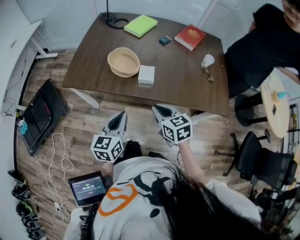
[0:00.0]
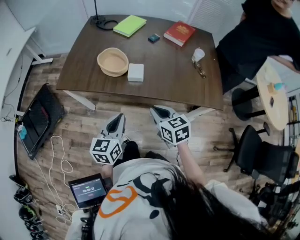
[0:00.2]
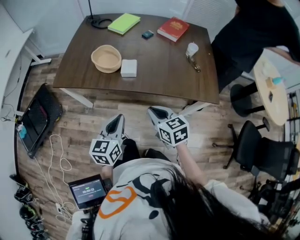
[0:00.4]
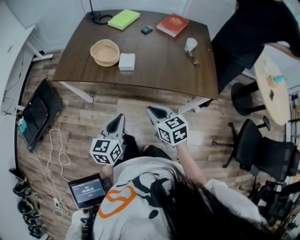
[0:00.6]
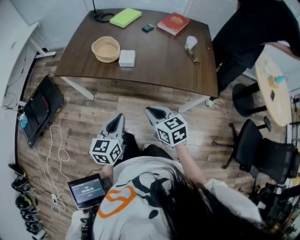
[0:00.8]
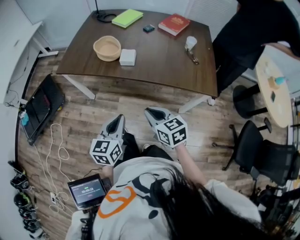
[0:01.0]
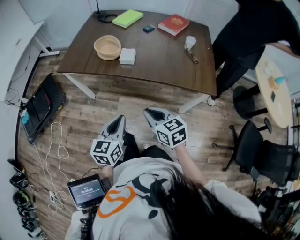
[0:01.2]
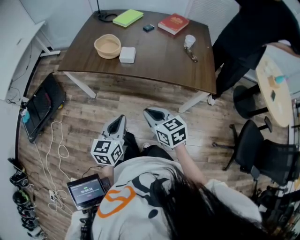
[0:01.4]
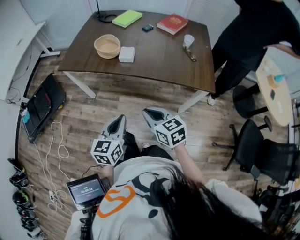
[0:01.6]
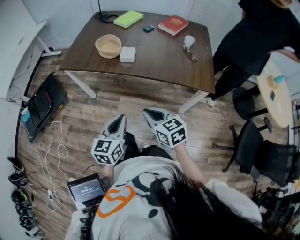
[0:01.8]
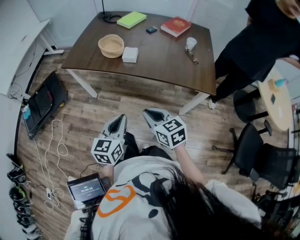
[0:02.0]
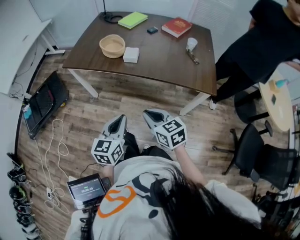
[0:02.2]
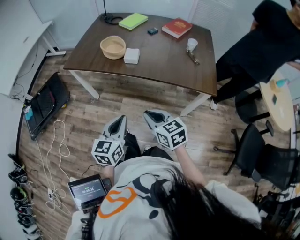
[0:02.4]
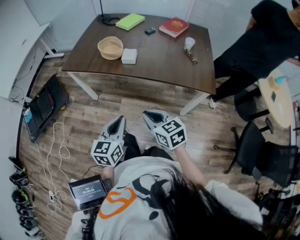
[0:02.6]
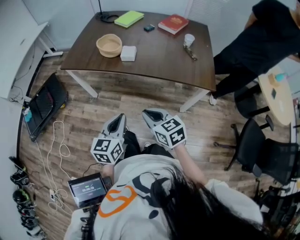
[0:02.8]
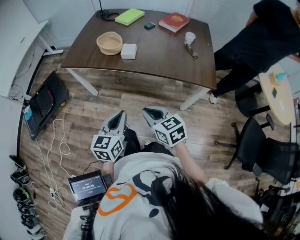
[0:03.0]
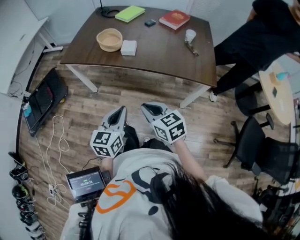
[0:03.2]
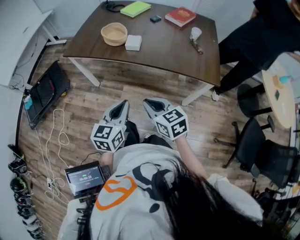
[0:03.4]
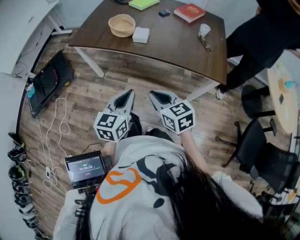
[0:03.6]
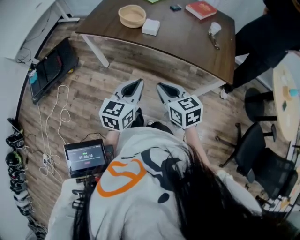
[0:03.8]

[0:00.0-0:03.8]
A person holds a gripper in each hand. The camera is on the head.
0:00.0 to 0:01.2: Both grippers travel together backward and to the right, roughly 20 cm.
0:01.2 to 0:03.8: The grippers stay close to where they were, moving slightly.

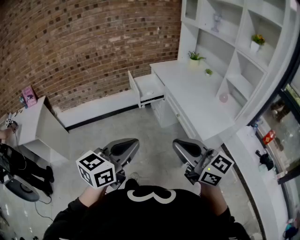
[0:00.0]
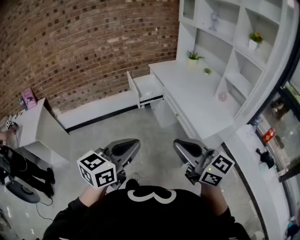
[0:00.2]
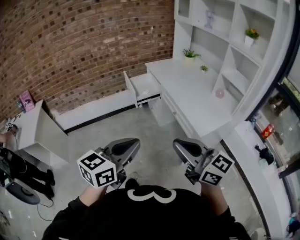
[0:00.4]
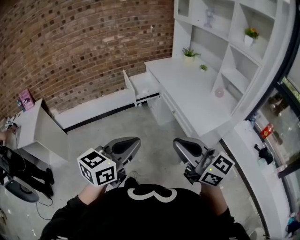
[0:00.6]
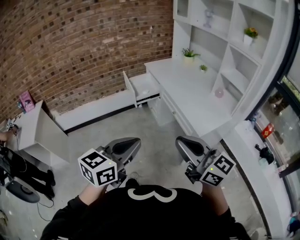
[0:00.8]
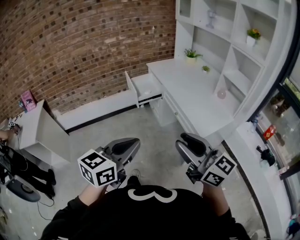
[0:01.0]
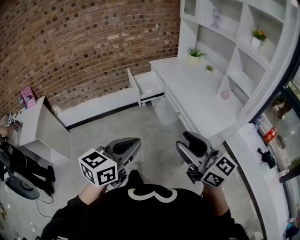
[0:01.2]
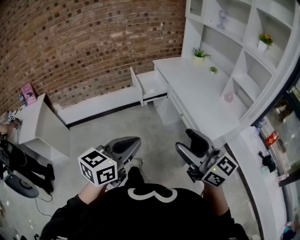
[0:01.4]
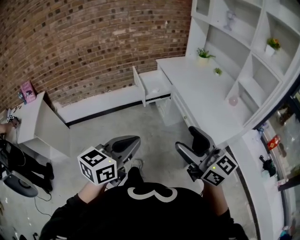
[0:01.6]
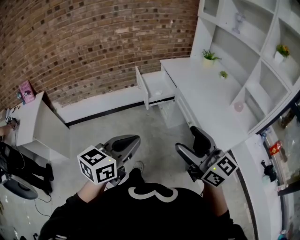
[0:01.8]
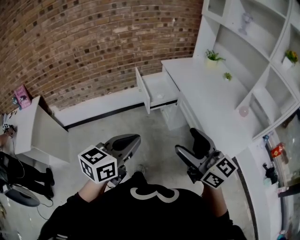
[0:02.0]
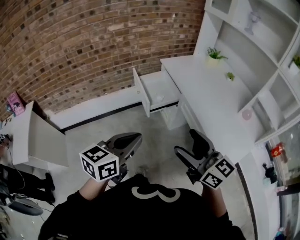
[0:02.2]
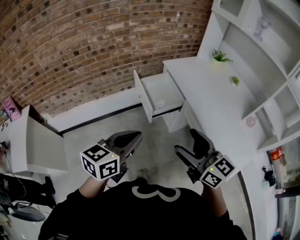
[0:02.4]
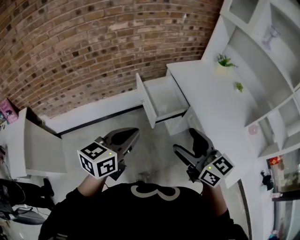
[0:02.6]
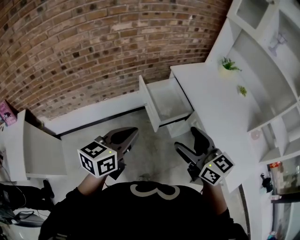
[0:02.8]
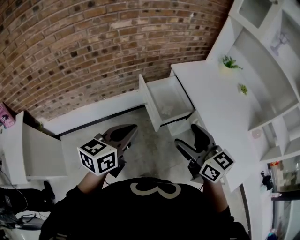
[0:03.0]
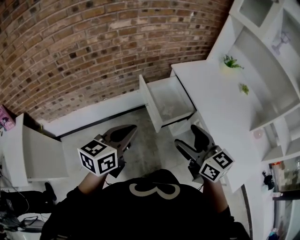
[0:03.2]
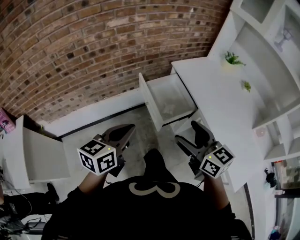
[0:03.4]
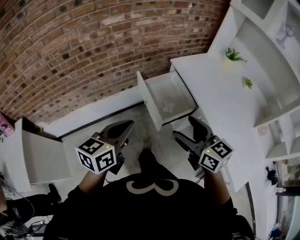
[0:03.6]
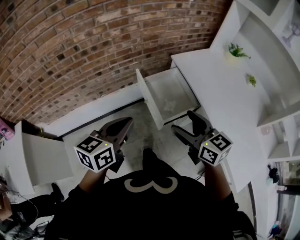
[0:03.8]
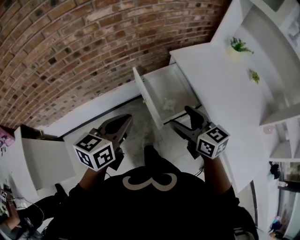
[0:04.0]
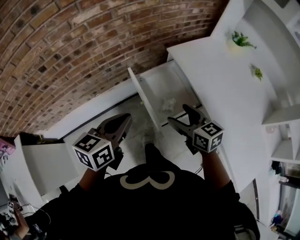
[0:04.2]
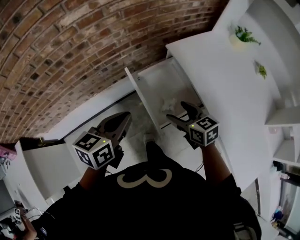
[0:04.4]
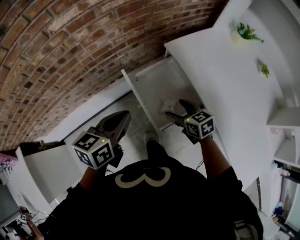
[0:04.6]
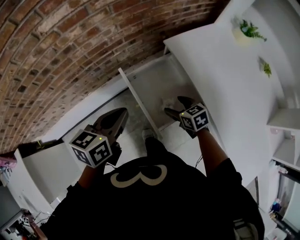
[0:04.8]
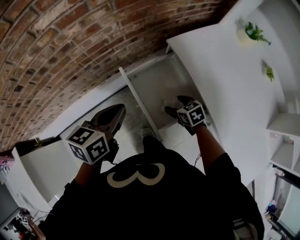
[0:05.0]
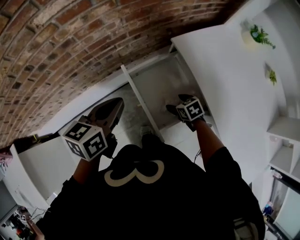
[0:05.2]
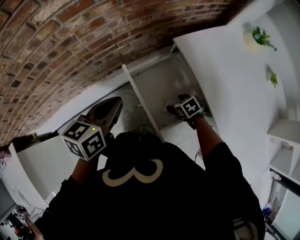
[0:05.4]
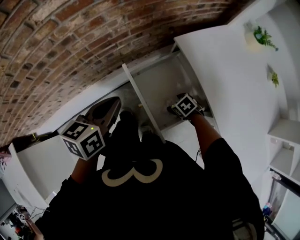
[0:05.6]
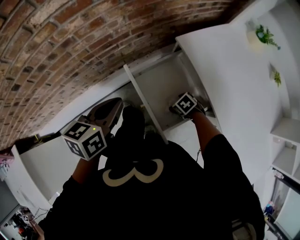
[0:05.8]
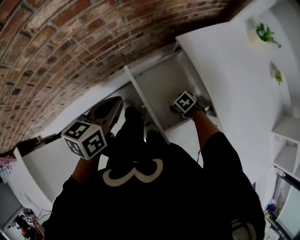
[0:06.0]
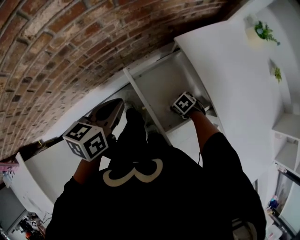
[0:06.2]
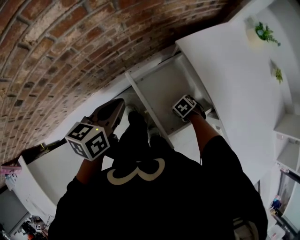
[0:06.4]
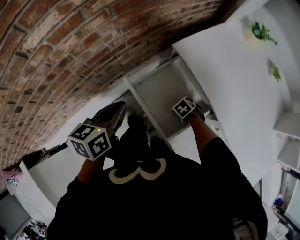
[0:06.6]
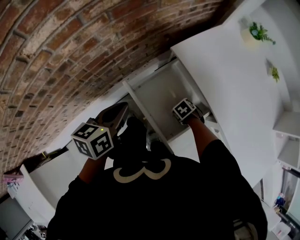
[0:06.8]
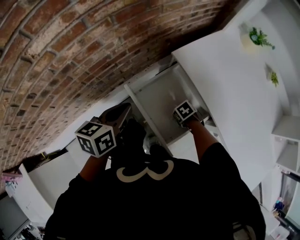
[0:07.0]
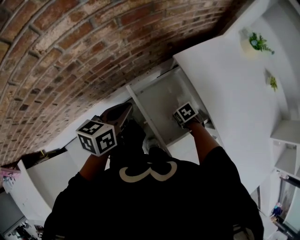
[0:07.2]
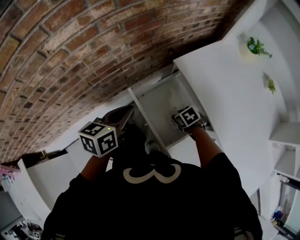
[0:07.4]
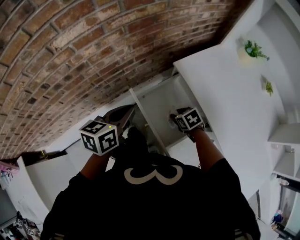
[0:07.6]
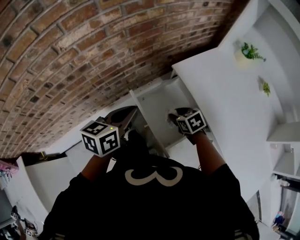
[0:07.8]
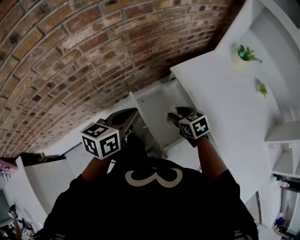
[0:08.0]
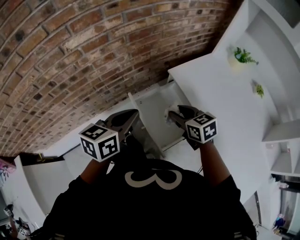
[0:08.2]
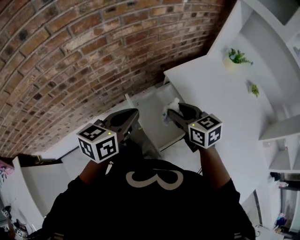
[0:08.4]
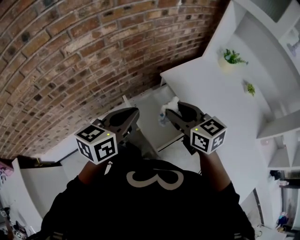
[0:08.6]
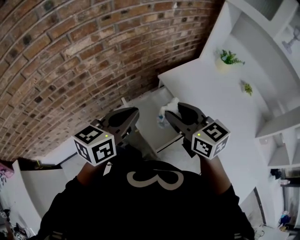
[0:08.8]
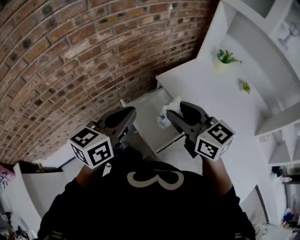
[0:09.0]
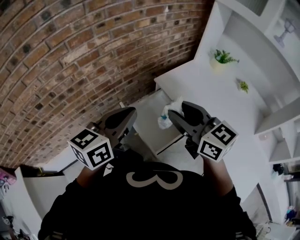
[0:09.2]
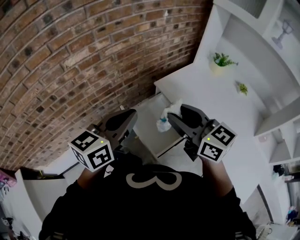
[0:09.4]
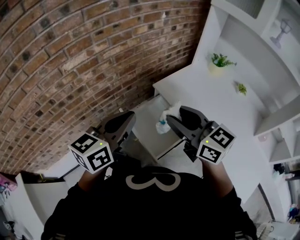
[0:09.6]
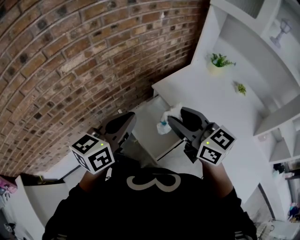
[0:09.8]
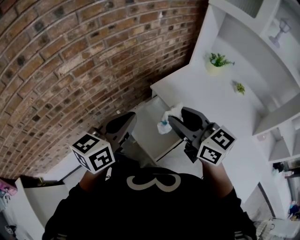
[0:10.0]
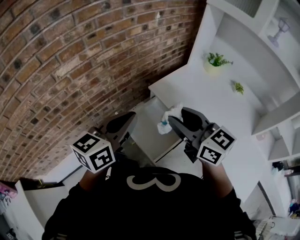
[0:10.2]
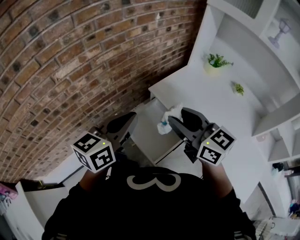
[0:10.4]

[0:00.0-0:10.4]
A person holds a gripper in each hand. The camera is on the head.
0:00.0 to 0:01.4: The right gripper opens up.
0:01.4 to 0:03.0: The two grippers travel together, forward and to the left, roughly 50 cm. The right gripper turns by some 20 degrees.
0:03.0 to 0:04.4: The grippers both shift forward and downward by approximately 30 cm. The right gripper turns by roughly 20 degrees.
0:04.4 to 0:06.0: The left gripper ends up roughly 15 cm from where it was; the right gripper shifts roughly 25 cm downward, and tilts its fingers about 50 degrees downward.
0:06.0 to 0:07.4: The right gripper heads upward, covering about 5 cm, and closes up.
0:07.4 to 0:09.0: The left gripper moves upward and backward, some 20 cm, and swivels about 20 degrees. The right gripper travels upward by approximately 40 cm, and tilts its fingers approximately 60 degrees upward.
0:09.0 to 0:10.4: The grippers move only a little.

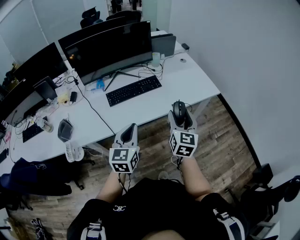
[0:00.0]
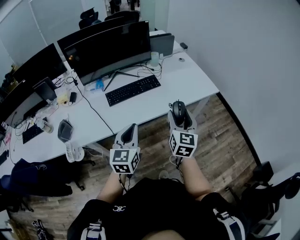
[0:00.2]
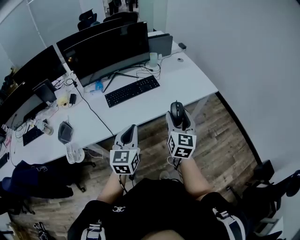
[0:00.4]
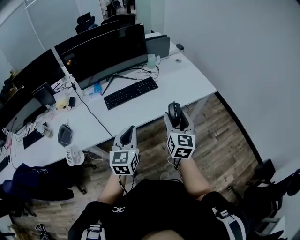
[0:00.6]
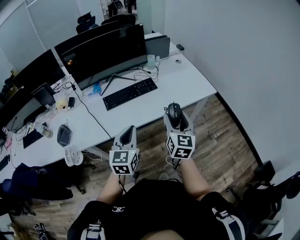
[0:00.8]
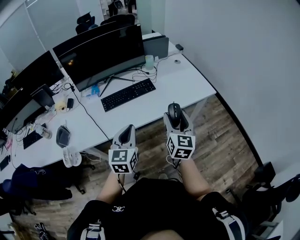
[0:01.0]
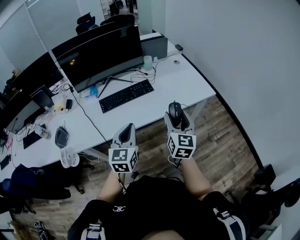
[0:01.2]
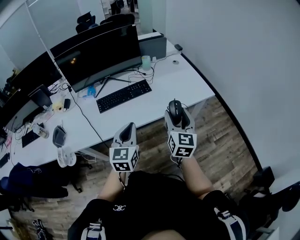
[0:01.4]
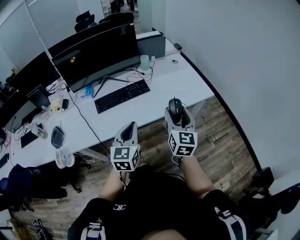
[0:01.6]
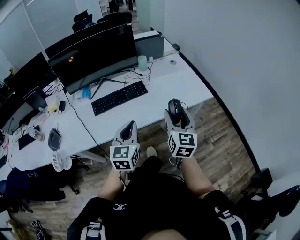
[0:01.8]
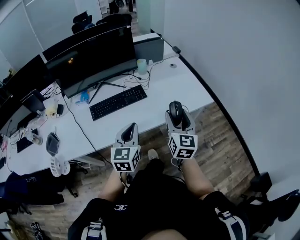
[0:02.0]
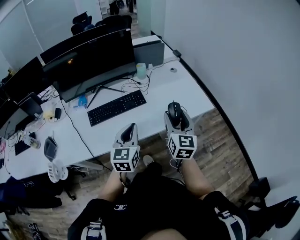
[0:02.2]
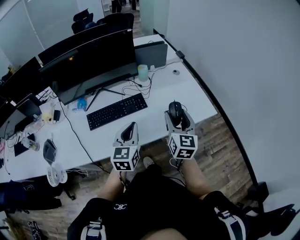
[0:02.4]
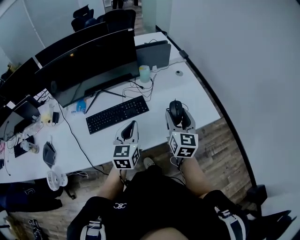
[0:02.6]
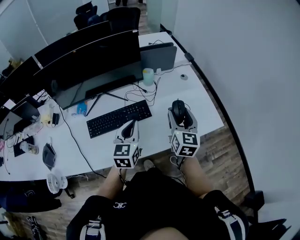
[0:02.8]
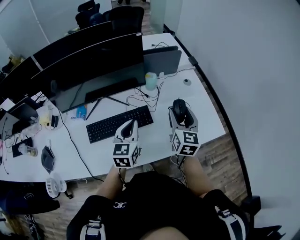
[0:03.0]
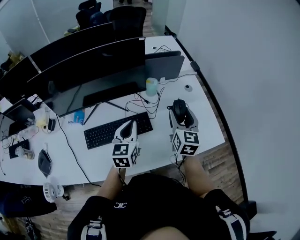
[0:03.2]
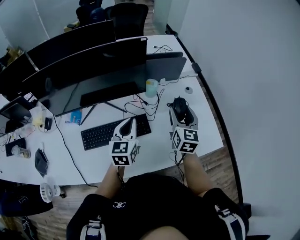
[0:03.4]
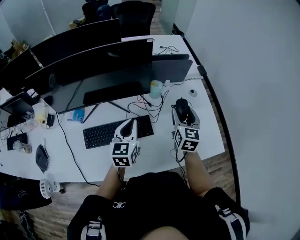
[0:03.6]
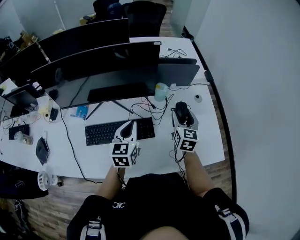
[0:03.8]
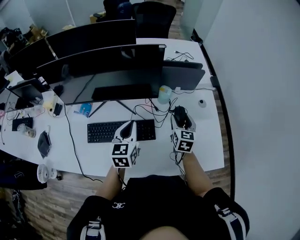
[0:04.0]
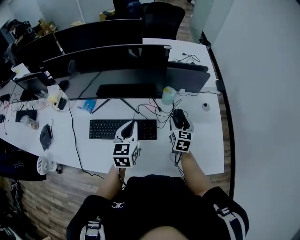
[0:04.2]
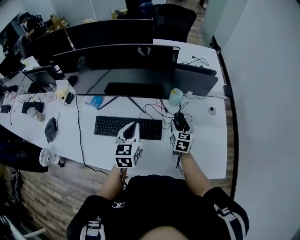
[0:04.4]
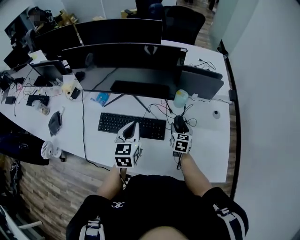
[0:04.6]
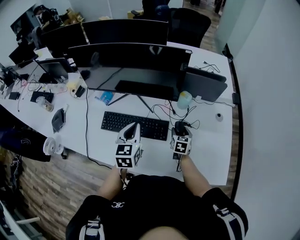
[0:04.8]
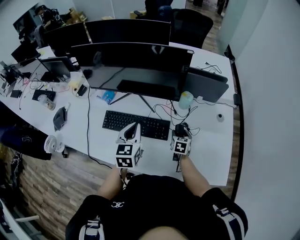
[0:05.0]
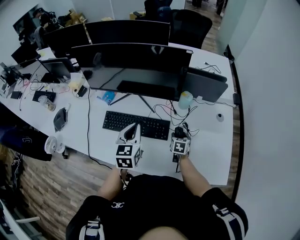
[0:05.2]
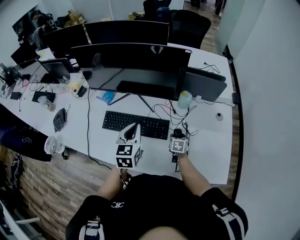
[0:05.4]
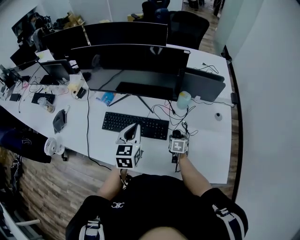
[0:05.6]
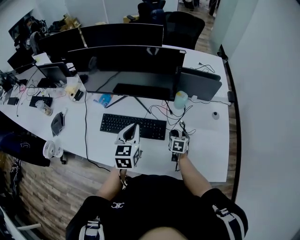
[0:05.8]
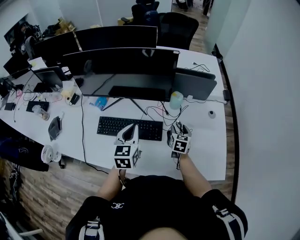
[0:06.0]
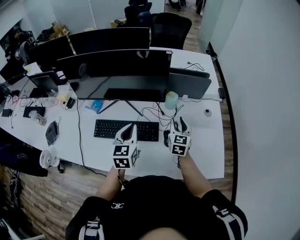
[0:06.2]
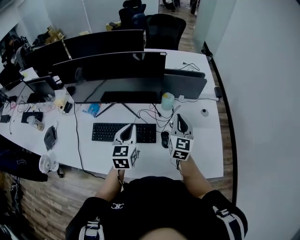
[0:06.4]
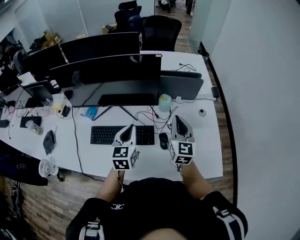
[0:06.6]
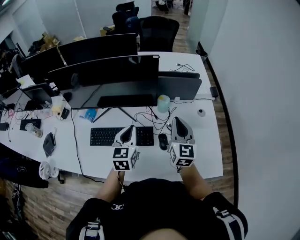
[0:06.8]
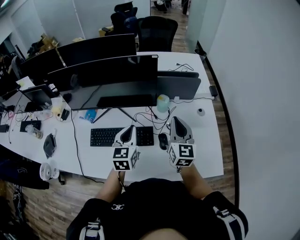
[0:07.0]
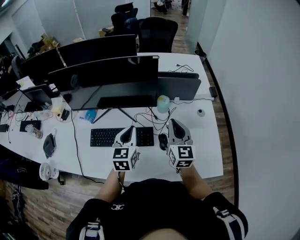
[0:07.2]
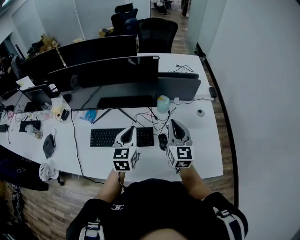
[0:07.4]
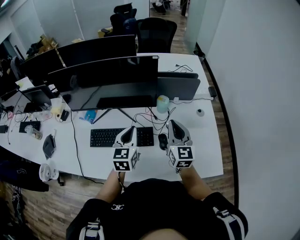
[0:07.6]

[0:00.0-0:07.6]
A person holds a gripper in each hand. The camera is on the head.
0:00.0 to 0:01.6: The grippers both shift to the right and forward by roughly 10 cm.
0:01.6 to 0:03.0: The grippers both shift forward by about 35 cm.
0:03.0 to 0:04.6: The left gripper goes approximately 5 cm forward, and turns by roughly 30 degrees. The right gripper goes approximately 25 cm downward and forward, and turns by about 30 degrees.
0:04.6 to 0:06.0: The right gripper moves about 10 cm downward and comes back.
0:06.0 to 0:07.6: The right gripper is displaced upward by some 20 cm, tilts its fingers some 30 degrees upward, and closes its fingers.

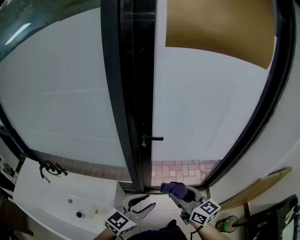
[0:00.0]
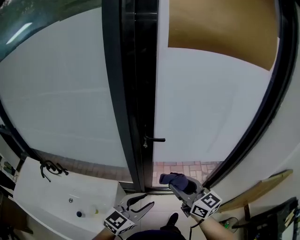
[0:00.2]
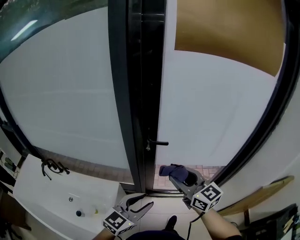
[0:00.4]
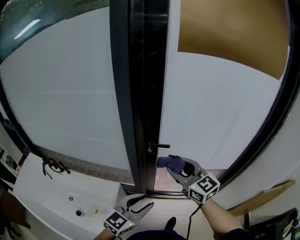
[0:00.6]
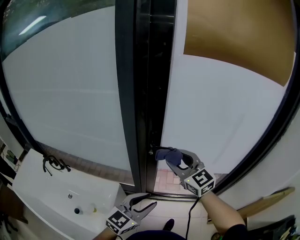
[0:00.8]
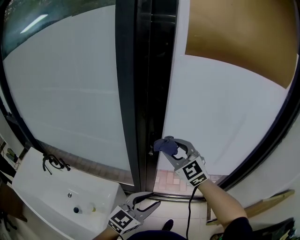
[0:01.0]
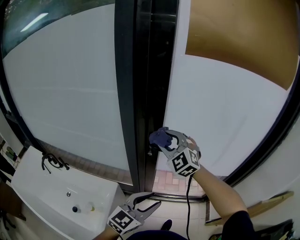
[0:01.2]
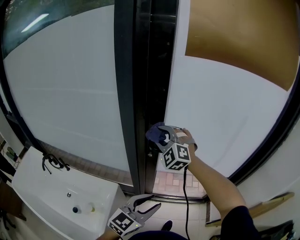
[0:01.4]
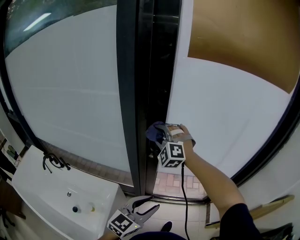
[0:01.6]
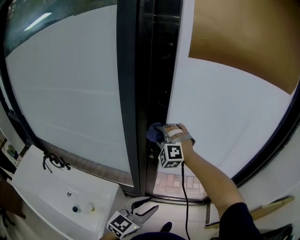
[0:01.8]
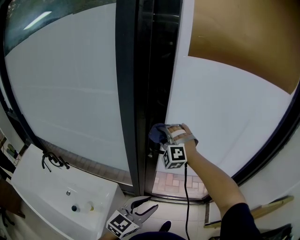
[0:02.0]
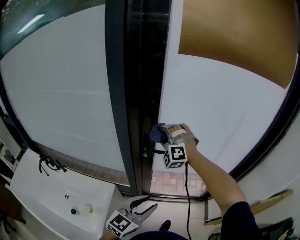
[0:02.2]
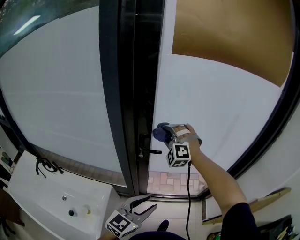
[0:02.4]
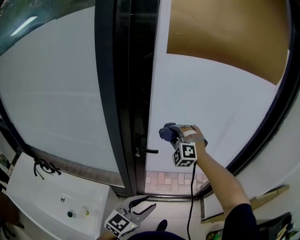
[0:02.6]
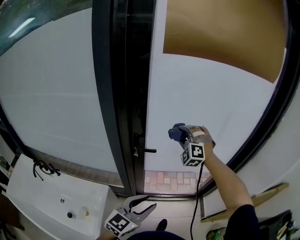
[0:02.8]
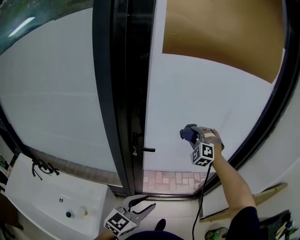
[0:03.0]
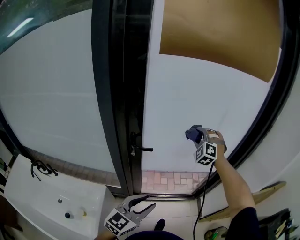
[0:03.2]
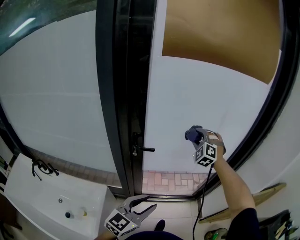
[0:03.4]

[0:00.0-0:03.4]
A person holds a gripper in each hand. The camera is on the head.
0:00.0 to 0:01.6: The left gripper travels forward by approximately 5 cm; the right gripper is displaced forward and to the left by some 35 cm, and rotates around the line of its fingers by about 90 degrees, counterclockwise from behind.
0:01.6 to 0:03.4: The right gripper moves to the right, roughly 30 cm, and turns by approximately 30 degrees.
